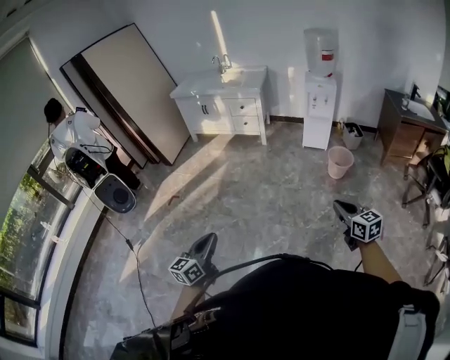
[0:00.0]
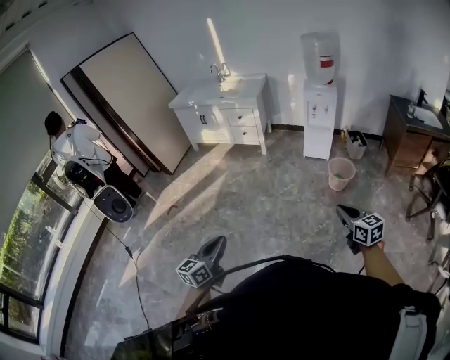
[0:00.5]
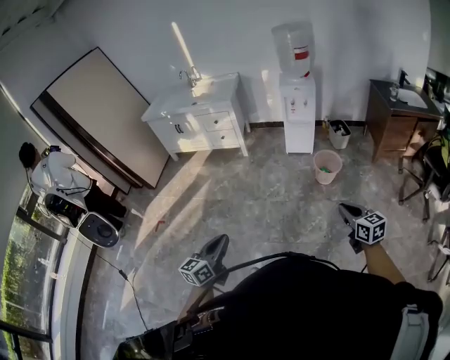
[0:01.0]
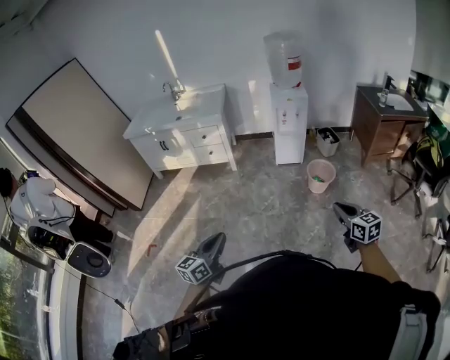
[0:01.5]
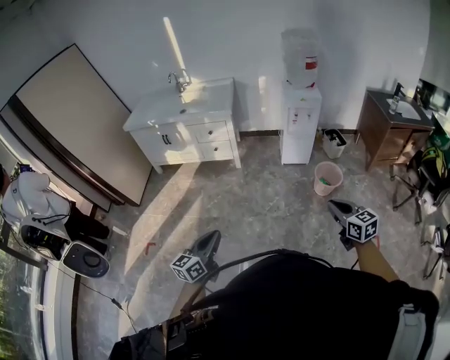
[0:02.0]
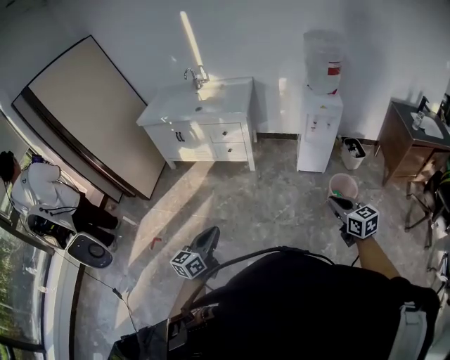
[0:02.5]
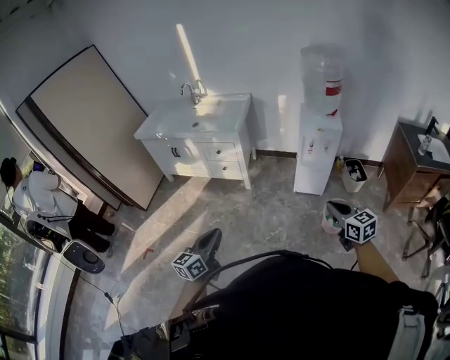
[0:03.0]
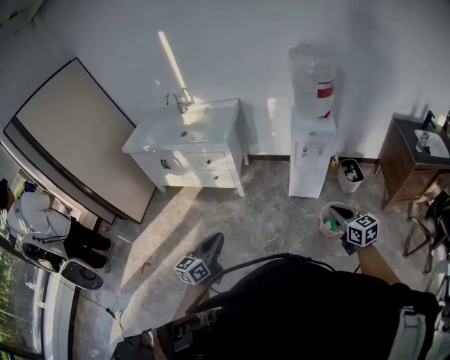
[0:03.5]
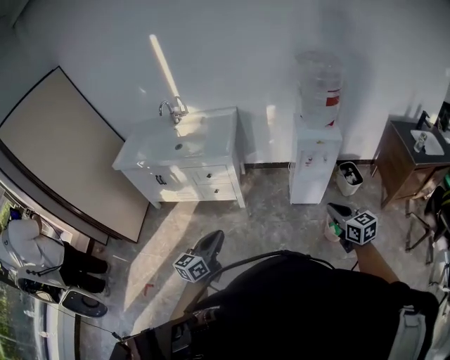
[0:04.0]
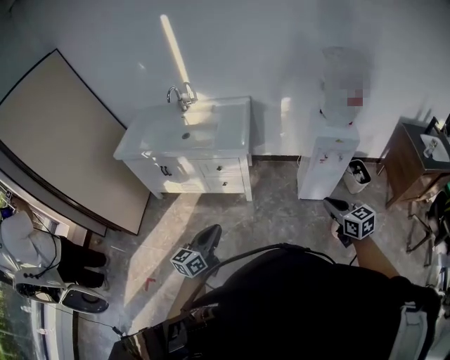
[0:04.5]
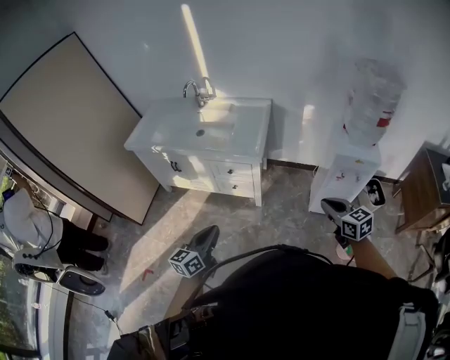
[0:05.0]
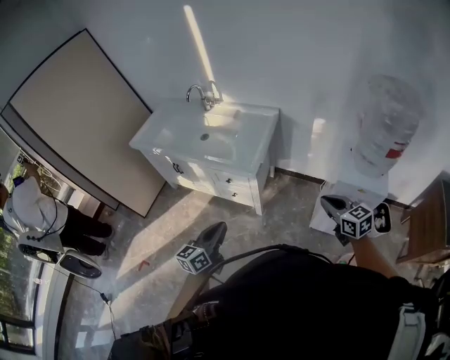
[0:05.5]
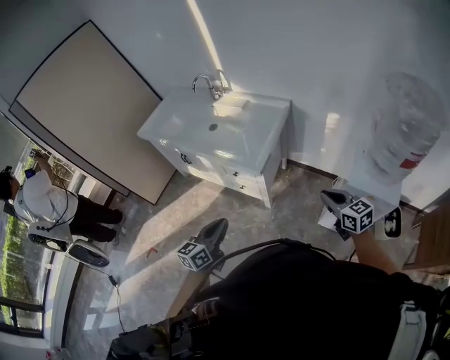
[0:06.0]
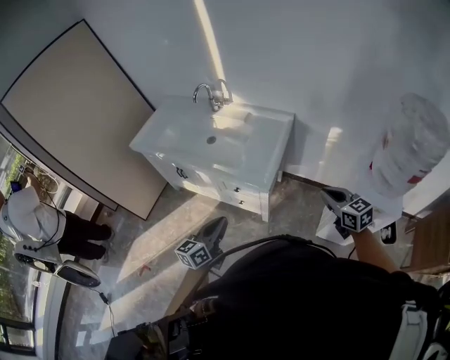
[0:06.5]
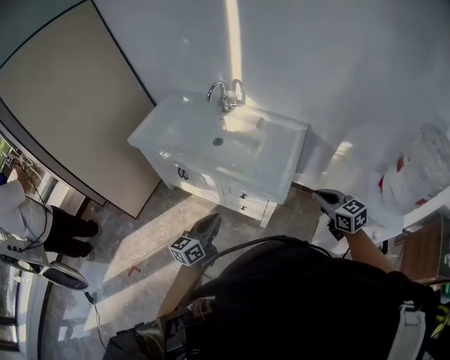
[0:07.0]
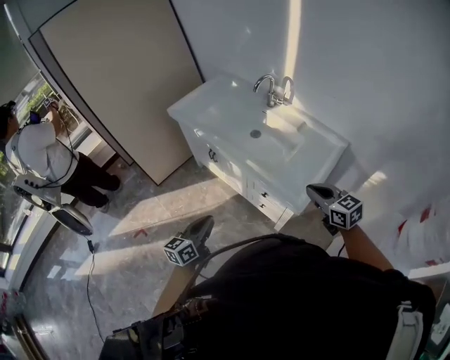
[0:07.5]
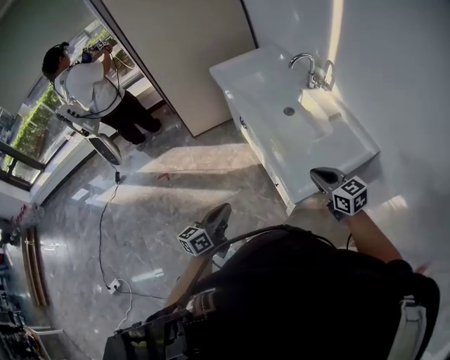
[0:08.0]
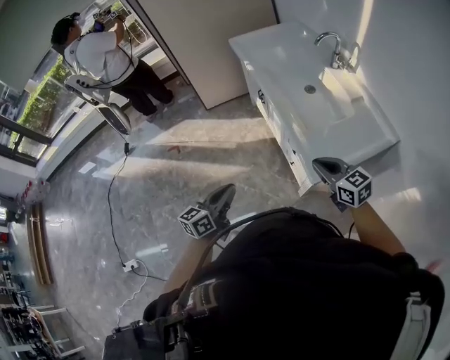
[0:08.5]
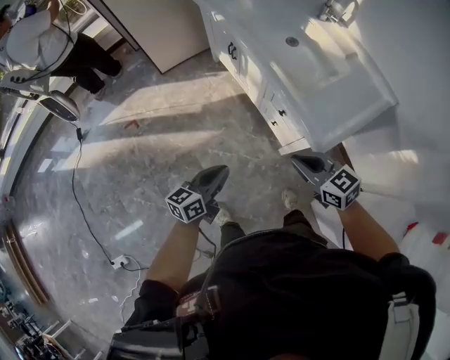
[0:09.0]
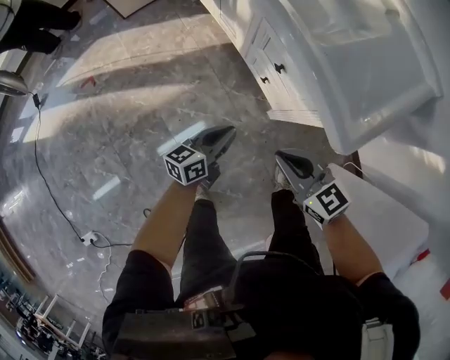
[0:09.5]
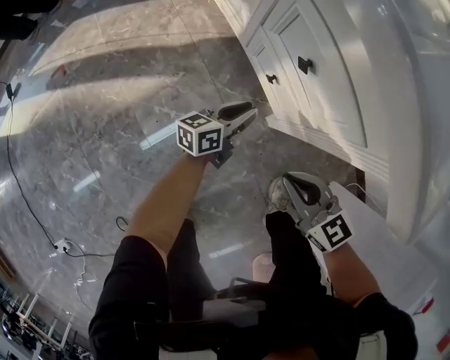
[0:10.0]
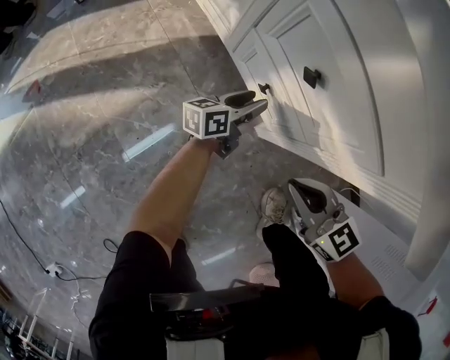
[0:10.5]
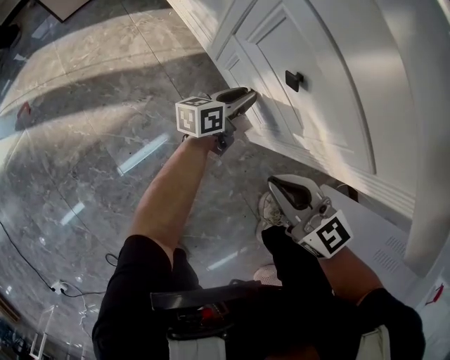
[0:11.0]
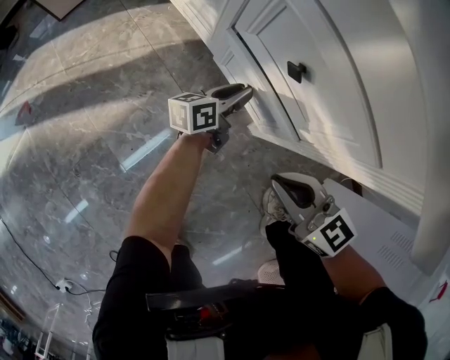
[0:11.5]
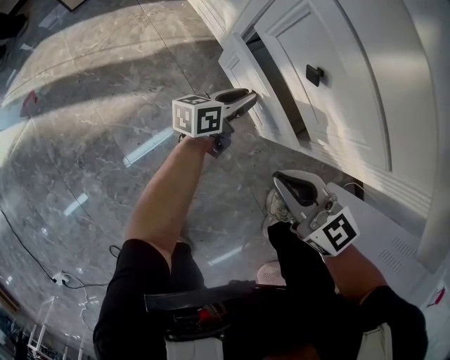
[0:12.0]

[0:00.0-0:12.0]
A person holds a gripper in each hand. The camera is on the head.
0:00.0 to 0:02.0: The grippers both shift forward by roughly 40 cm.
0:02.0 to 0:04.0: Both grippers are carried forward, roughly 40 cm.
0:04.0 to 0:06.0: The left gripper ends up some 30 cm from where it was, and swivels about 20 degrees, while the right gripper moves approximately 50 cm, and turns by approximately 30 degrees.
0:06.0 to 0:08.0: The right gripper moves about 40 cm, and rotates some 40 degrees; the left gripper swivels roughly 40 degrees.
0:08.0 to 0:10.0: The grippers both shift downward by some 60 cm. The left gripper turns by some 30 degrees.
0:10.0 to 0:12.0: The right gripper goes about 5 cm forward. Meanwhile the left gripper goes roughly 10 cm forward and downward.

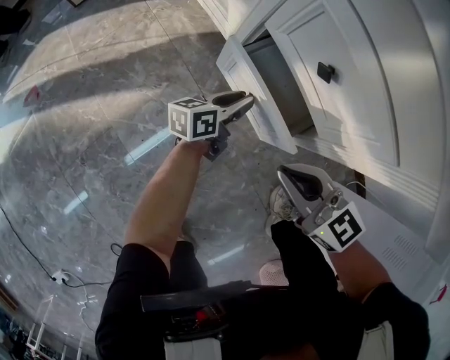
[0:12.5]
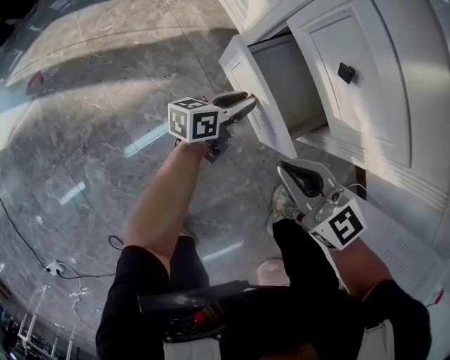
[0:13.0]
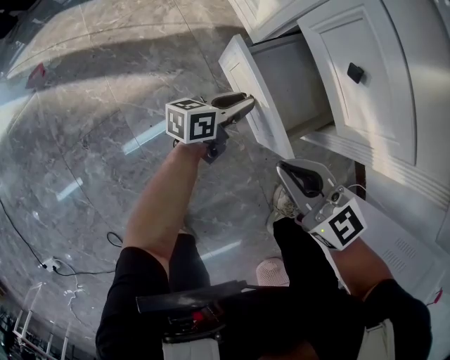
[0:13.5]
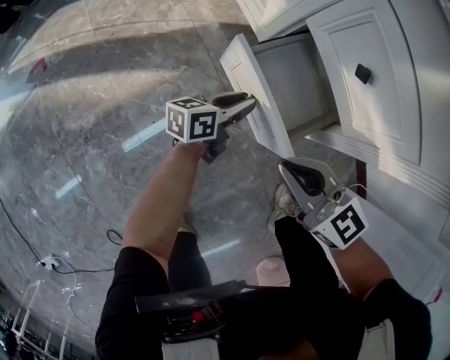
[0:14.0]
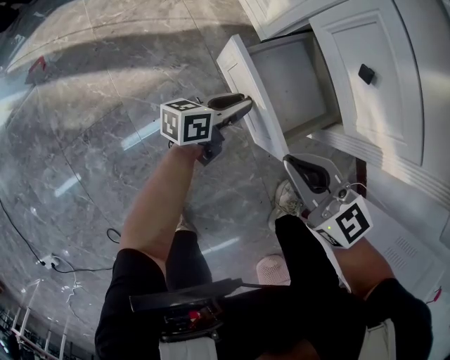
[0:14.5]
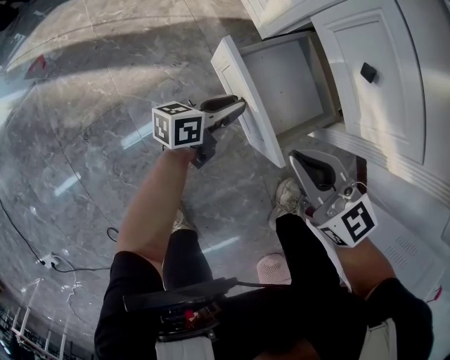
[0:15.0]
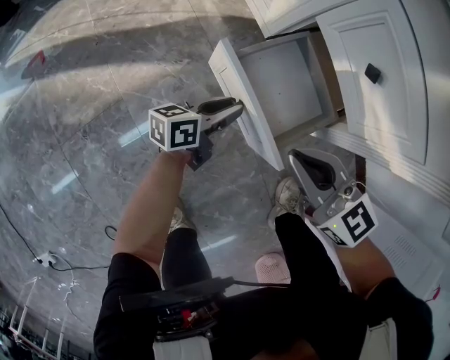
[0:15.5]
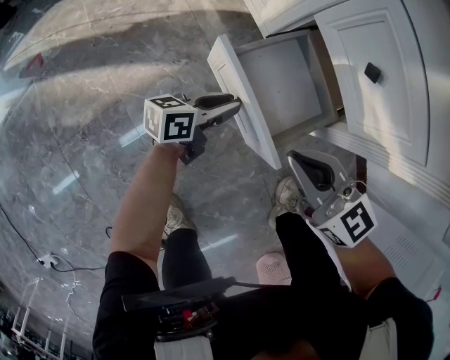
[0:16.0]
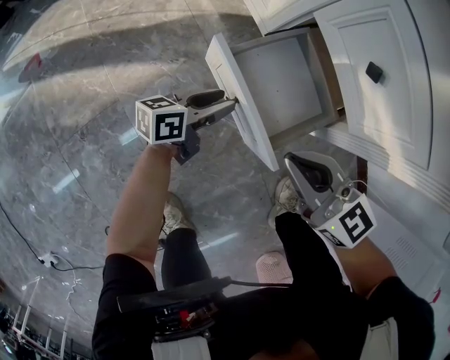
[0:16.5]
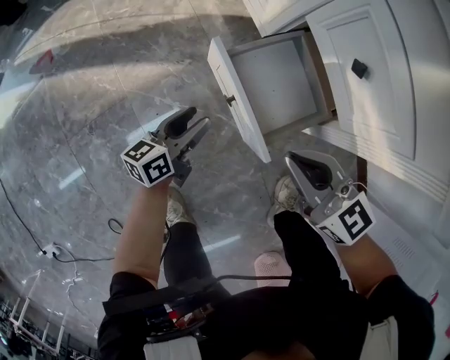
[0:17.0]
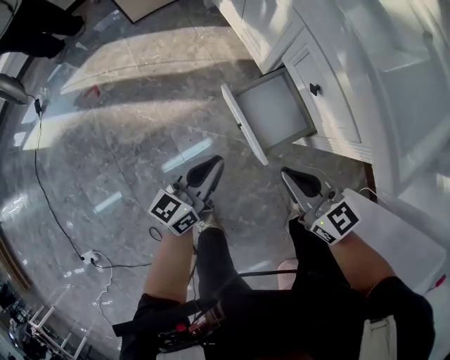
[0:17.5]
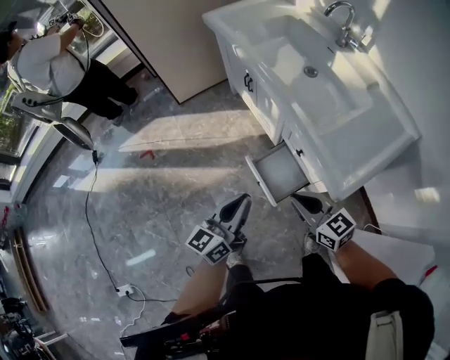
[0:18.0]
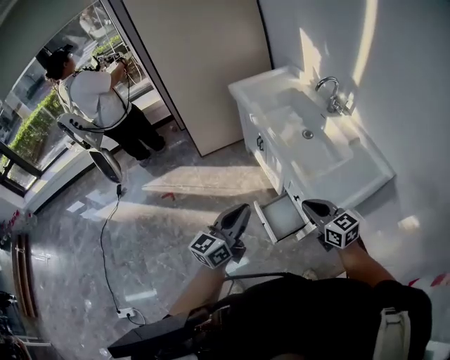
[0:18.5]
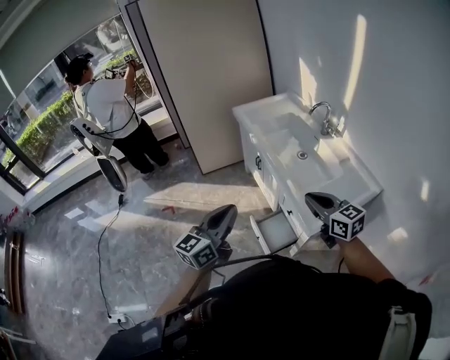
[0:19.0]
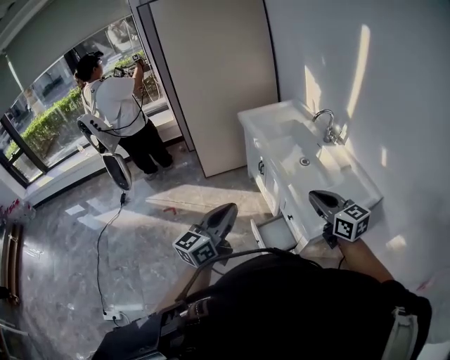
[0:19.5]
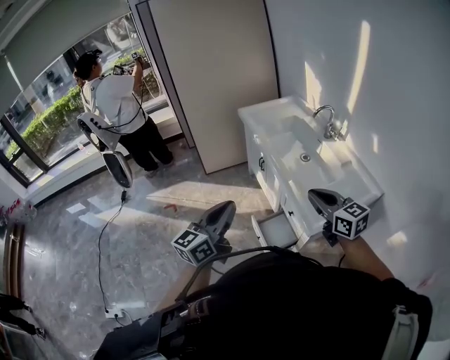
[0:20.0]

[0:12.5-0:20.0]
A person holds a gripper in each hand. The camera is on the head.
0:12.5 to 0:14.5: The right gripper travels to the left by some 5 cm; the left gripper is displaced to the left and backward by about 10 cm.
0:14.5 to 0:16.5: The grippers move only a little.
0:16.5 to 0:18.0: The left gripper moves upward, some 60 cm, changes its angle by some 40 degrees, and closes up. The right gripper travels upward by roughly 35 cm.
0:18.0 to 0:20.0: The grippers both shift upward by roughly 30 cm.

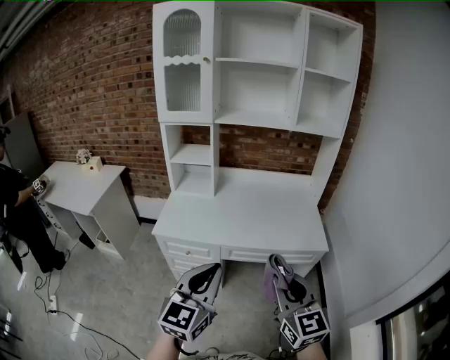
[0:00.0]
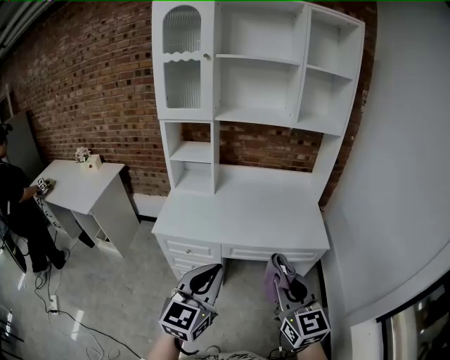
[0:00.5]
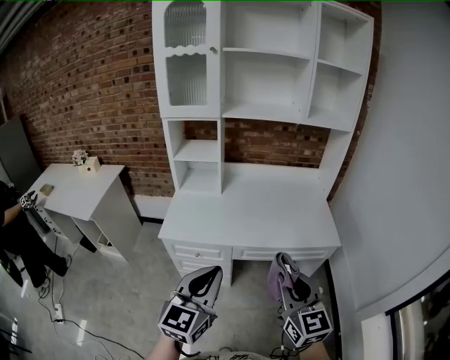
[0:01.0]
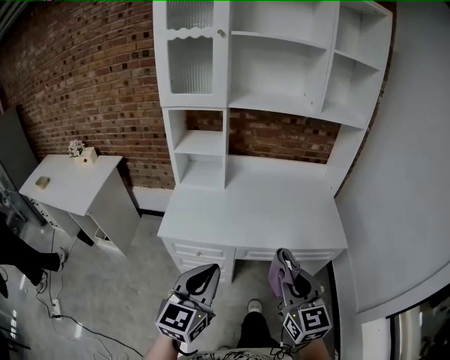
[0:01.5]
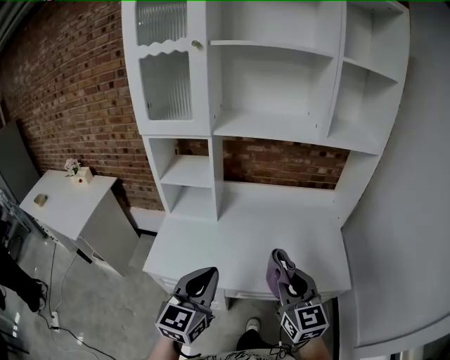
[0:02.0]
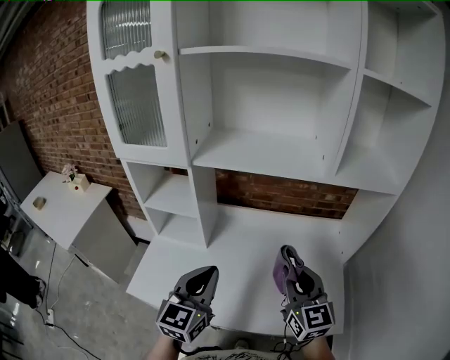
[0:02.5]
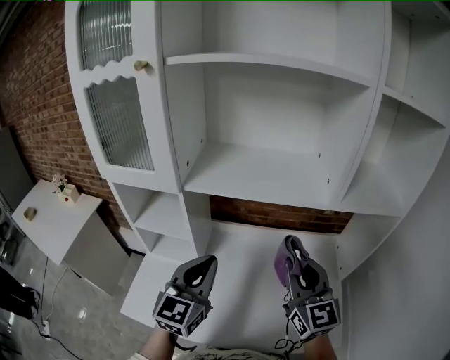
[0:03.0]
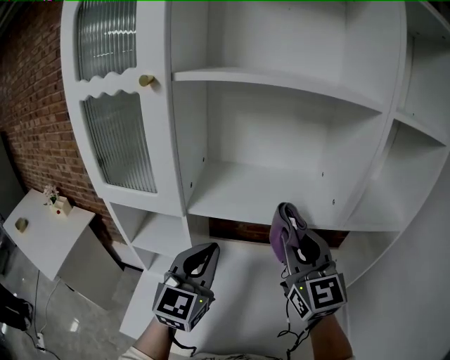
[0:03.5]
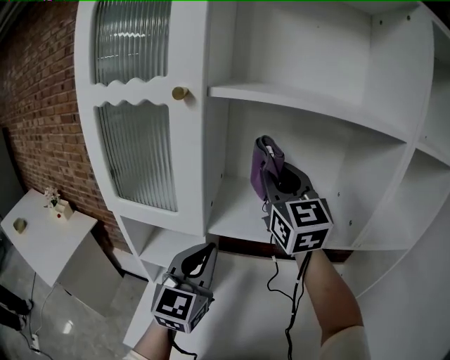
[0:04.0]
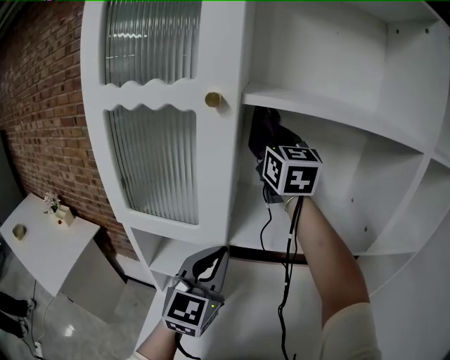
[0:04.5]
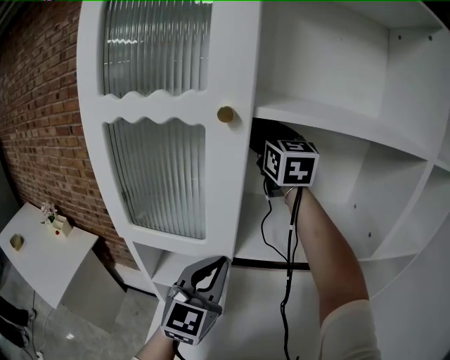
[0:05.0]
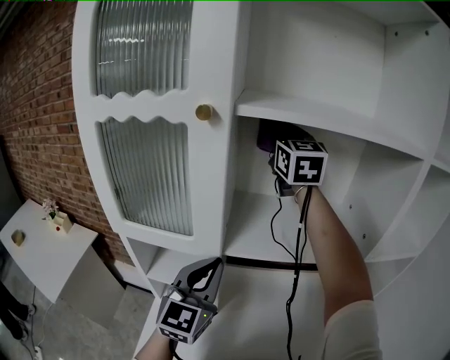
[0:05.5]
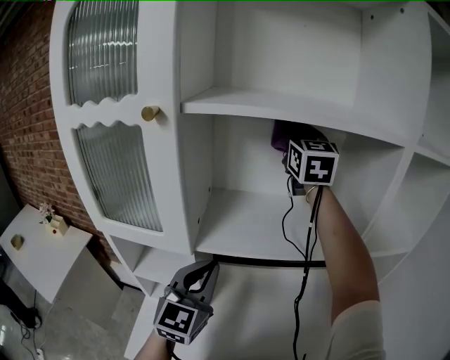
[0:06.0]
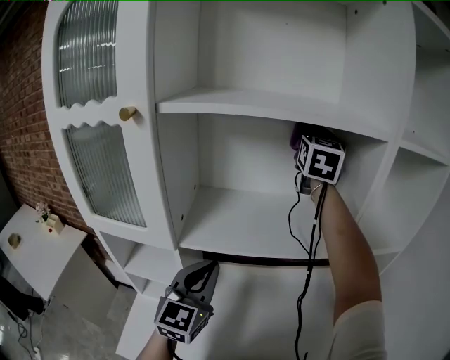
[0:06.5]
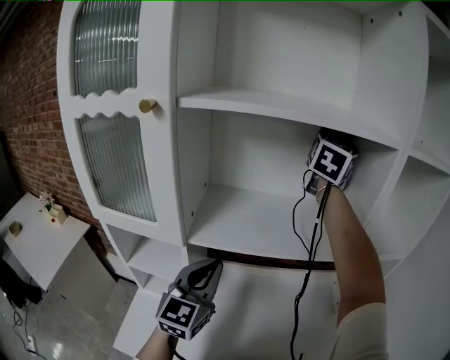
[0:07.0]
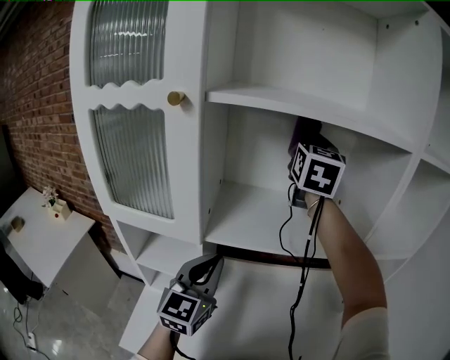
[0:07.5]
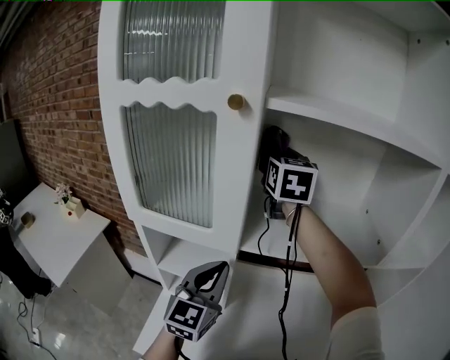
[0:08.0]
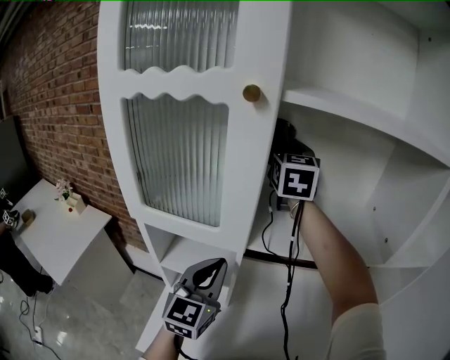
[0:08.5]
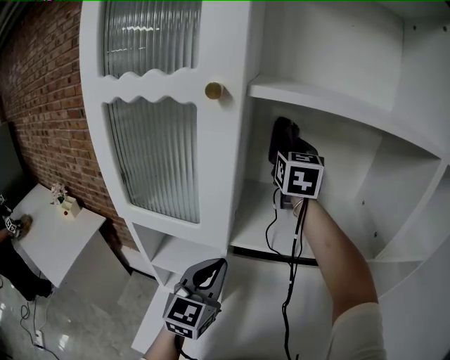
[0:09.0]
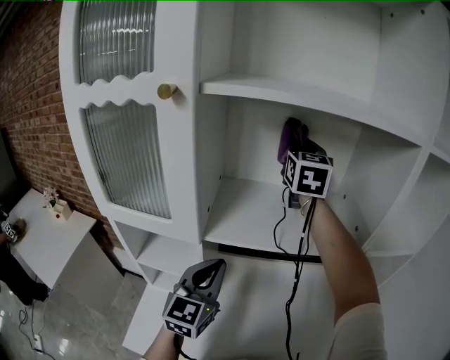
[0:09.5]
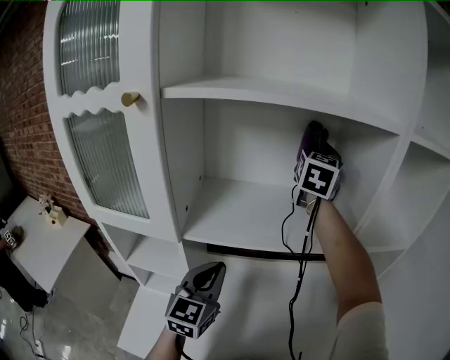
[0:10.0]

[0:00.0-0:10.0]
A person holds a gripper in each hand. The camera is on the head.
0:00.0 to 0:02.0: The two grippers go some 30 cm forward.
0:02.0 to 0:04.0: Both grippers travel together forward and upward, approximately 50 cm. The right gripper turns by some 20 degrees.
0:04.0 to 0:06.0: The right gripper moves forward, to the right and upward, roughly 20 cm.
0:06.0 to 0:08.0: The right gripper heads to the left and downward, covering roughly 20 cm; the left gripper moves to the left, roughly 5 cm.
0:08.0 to 0:10.0: The right gripper heads to the right, covering roughly 25 cm, and rotates approximately 30 degrees. The left gripper is displaced to the right by roughly 10 cm.
